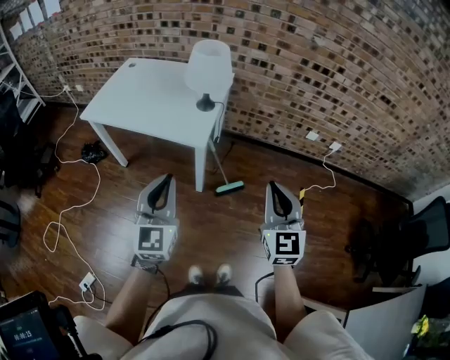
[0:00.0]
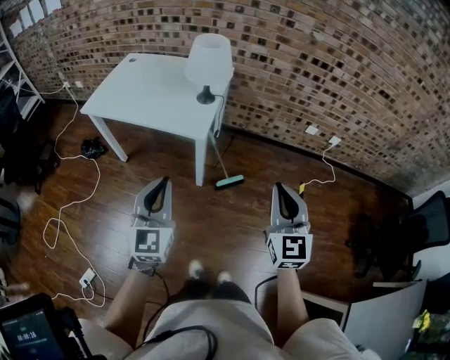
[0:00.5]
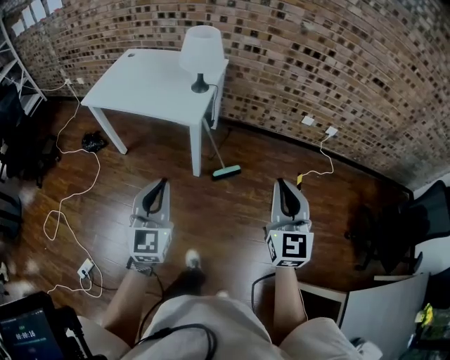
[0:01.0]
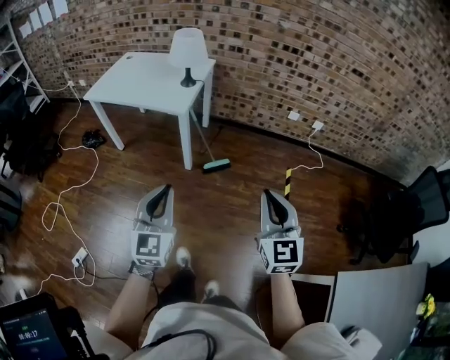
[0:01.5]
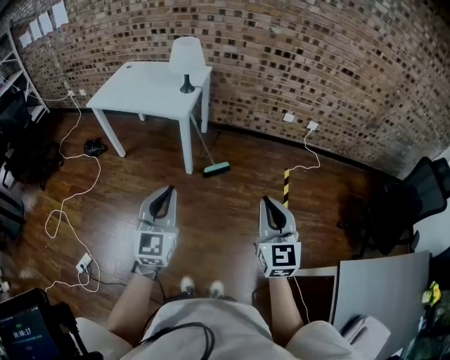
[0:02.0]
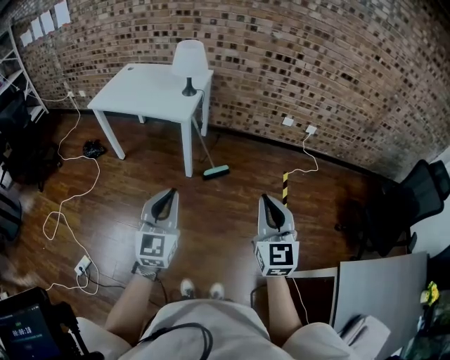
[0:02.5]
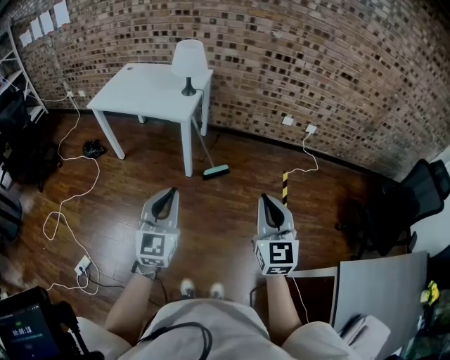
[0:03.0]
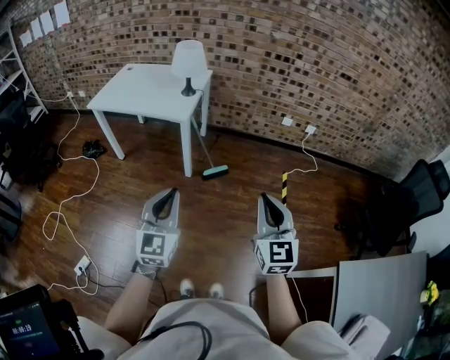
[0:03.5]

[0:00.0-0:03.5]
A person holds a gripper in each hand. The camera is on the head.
0:00.0 to 0:02.0: Both grippers travel together backward, approximately 30 cm.
0:02.0 to 0:03.5: The grippers move only a little.

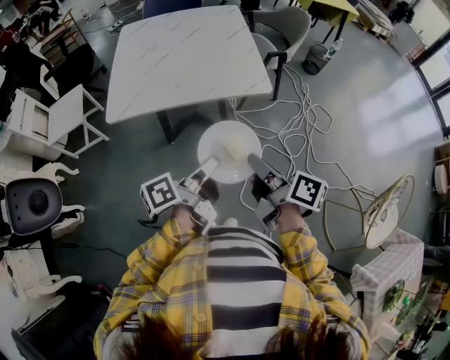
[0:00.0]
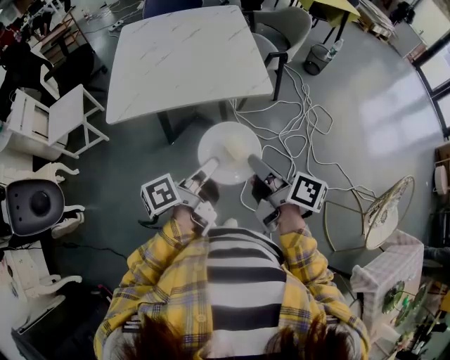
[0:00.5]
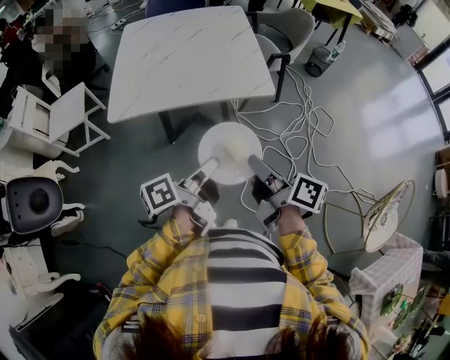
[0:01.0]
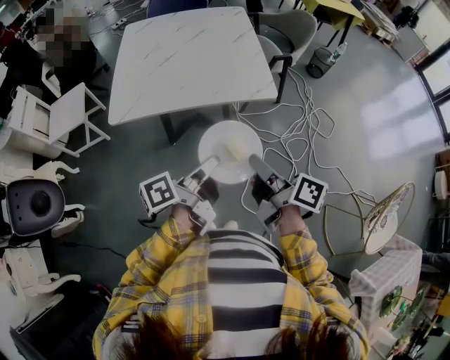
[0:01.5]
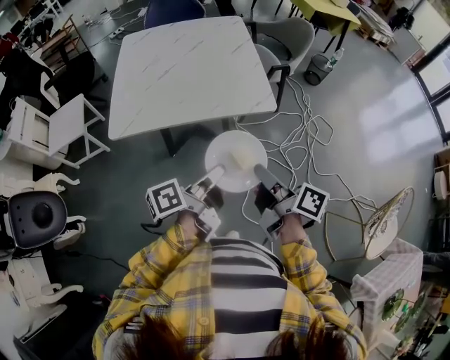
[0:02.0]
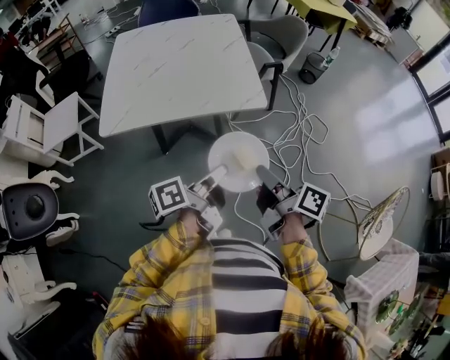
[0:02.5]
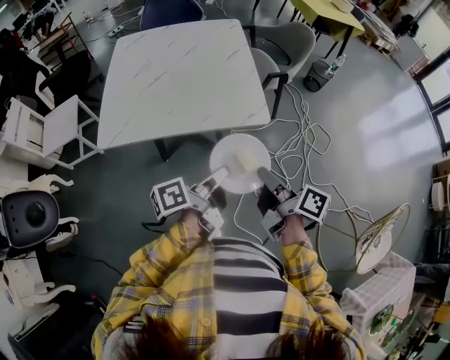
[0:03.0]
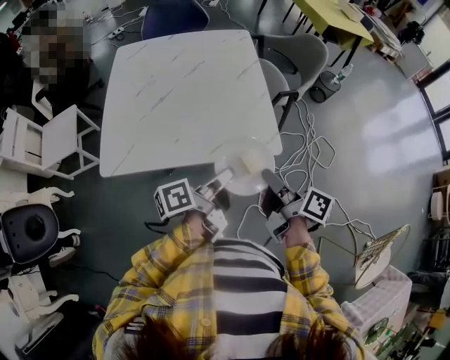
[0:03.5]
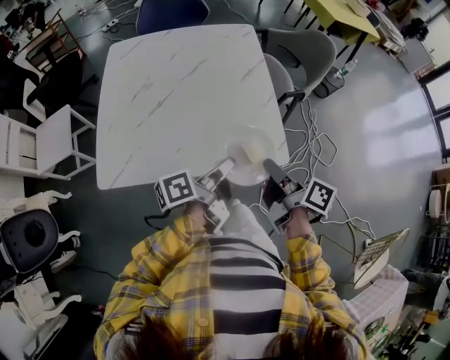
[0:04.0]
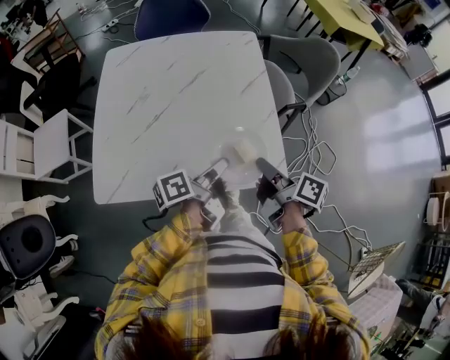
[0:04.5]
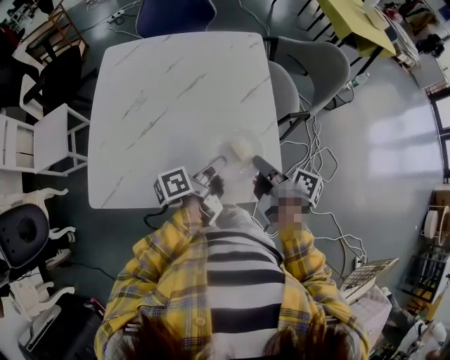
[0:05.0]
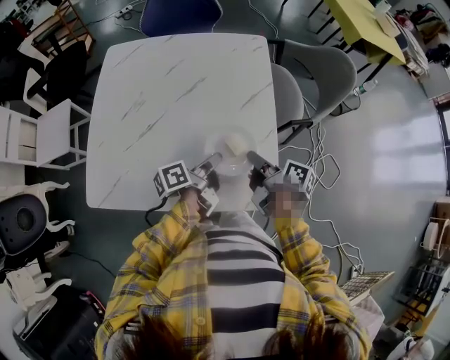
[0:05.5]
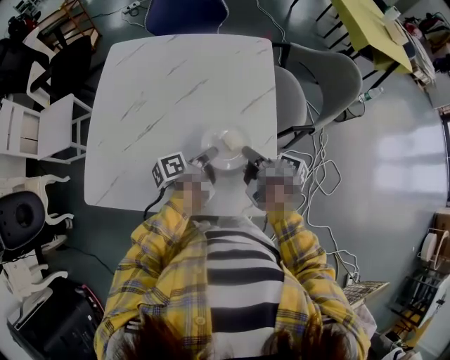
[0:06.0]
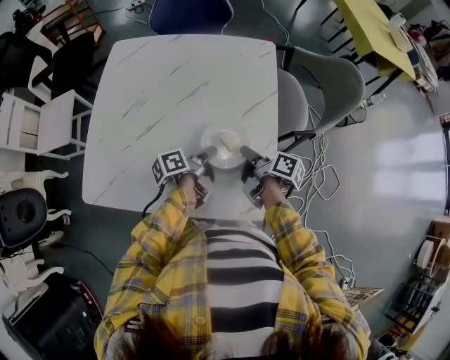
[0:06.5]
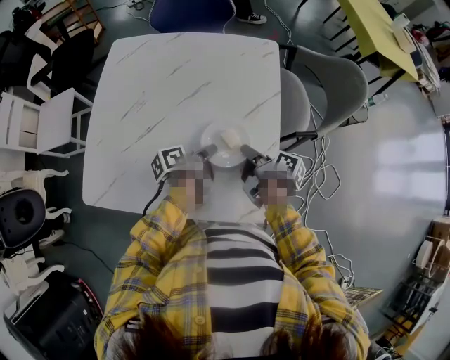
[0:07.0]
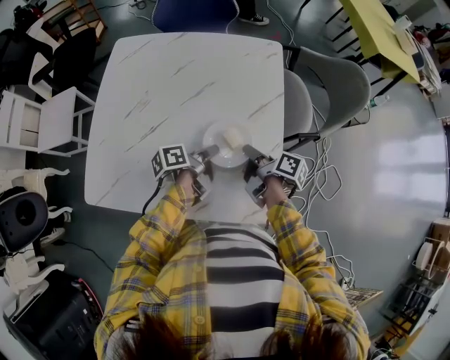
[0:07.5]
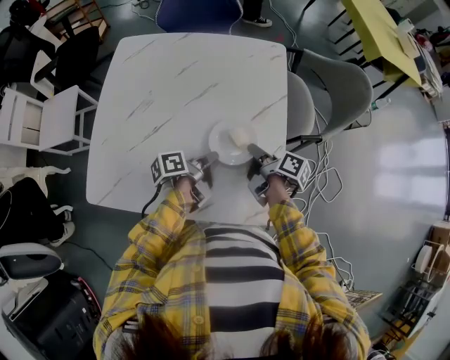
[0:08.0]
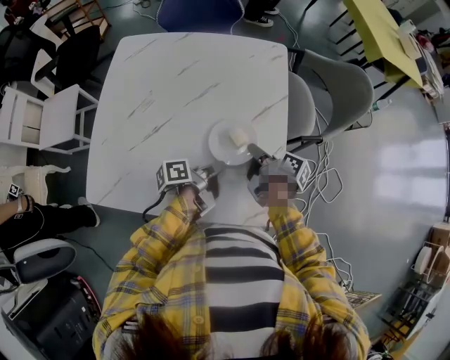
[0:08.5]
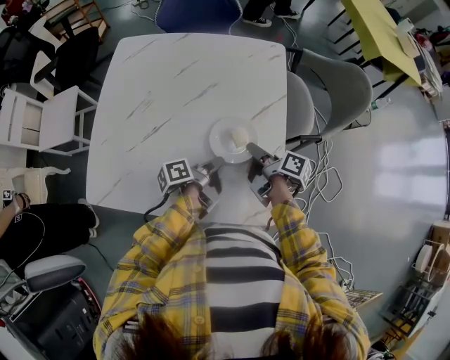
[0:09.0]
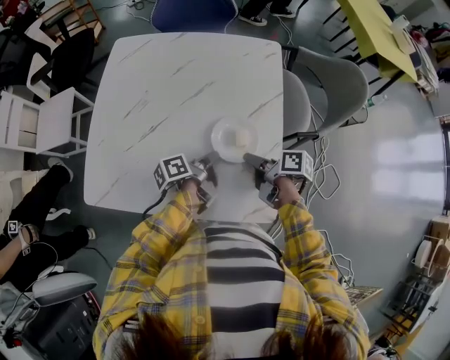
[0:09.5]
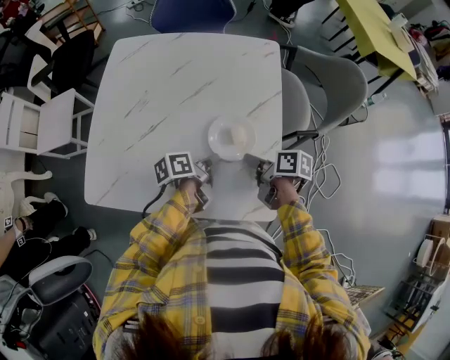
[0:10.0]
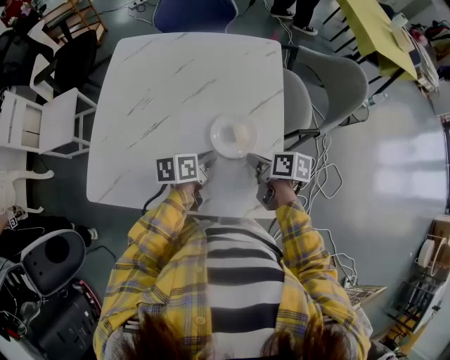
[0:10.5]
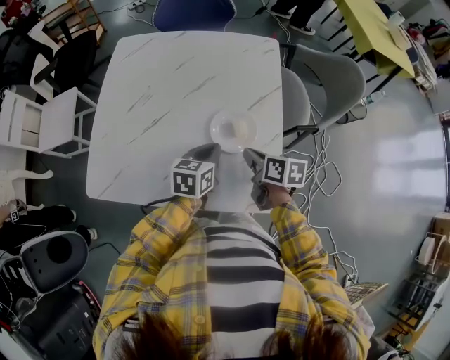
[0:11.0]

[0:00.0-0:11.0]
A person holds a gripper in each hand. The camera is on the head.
0:02.0 to 0:03.5: The right gripper changes place by about 15 cm.
0:03.5 to 0:05.5: The right gripper ends up about 25 cm from where it was.
0:05.5 to 0:07.5: The right gripper shifts by some 10 cm.
0:09.0 to 0:11.0: The right gripper ends up roughly 5 cm from where it was, and changes its angle by roughly 40 degrees.

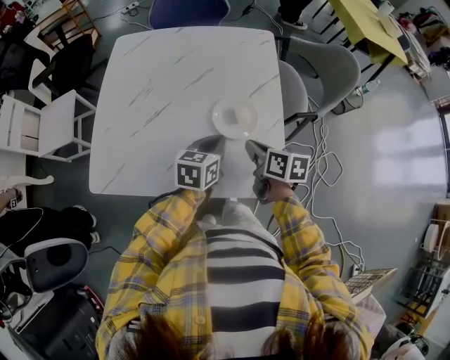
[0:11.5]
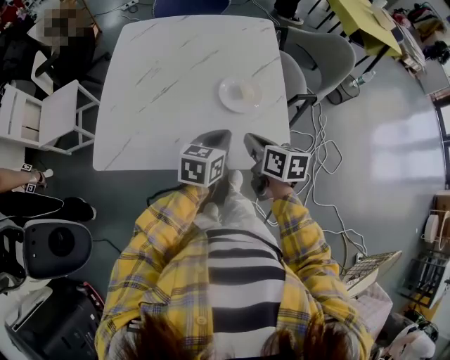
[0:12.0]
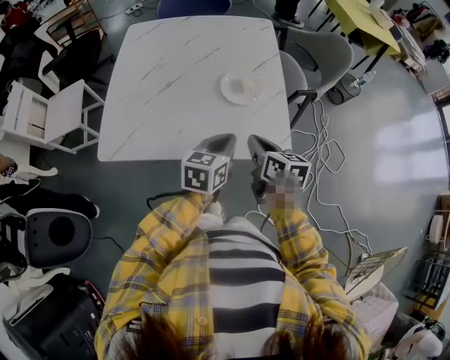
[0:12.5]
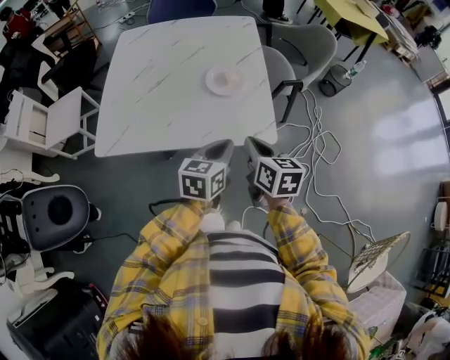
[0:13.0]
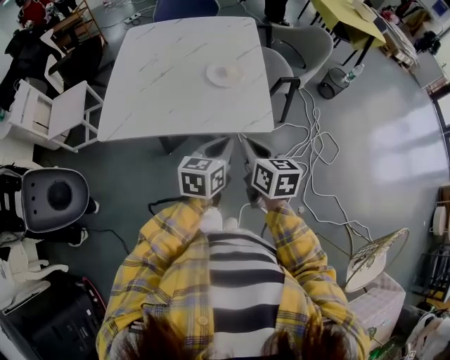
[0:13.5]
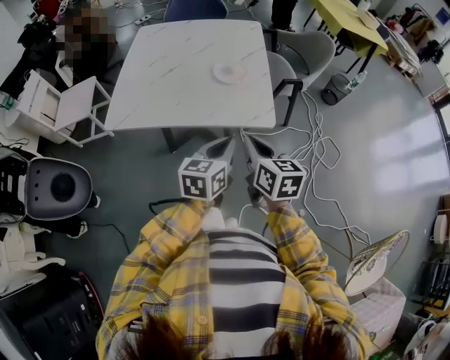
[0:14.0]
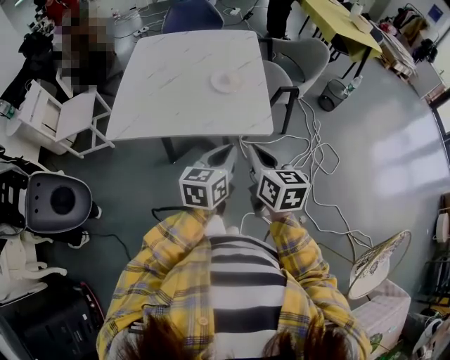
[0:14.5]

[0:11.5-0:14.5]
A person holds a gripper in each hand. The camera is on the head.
0:11.5 to 0:13.0: The right gripper ends up about 20 cm from where it was.
0:13.0 to 0:14.5: The right gripper moves some 10 cm.

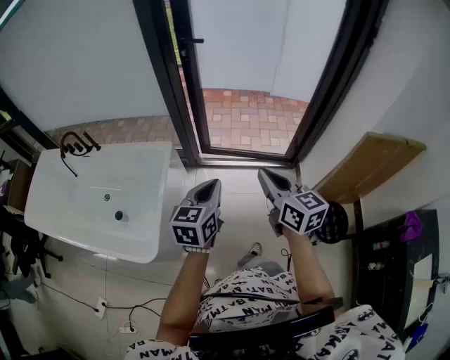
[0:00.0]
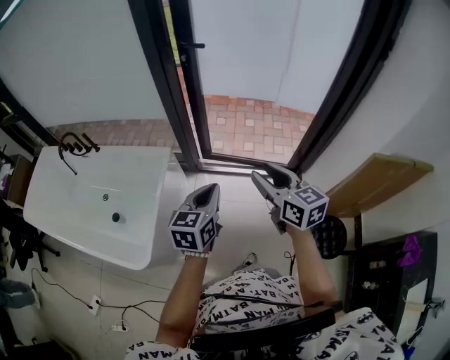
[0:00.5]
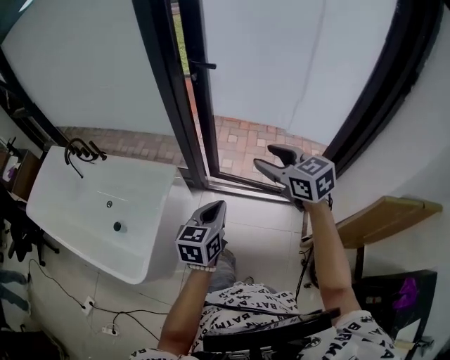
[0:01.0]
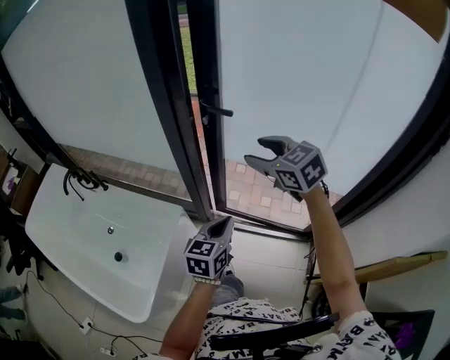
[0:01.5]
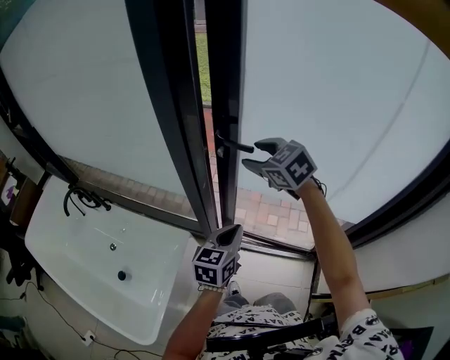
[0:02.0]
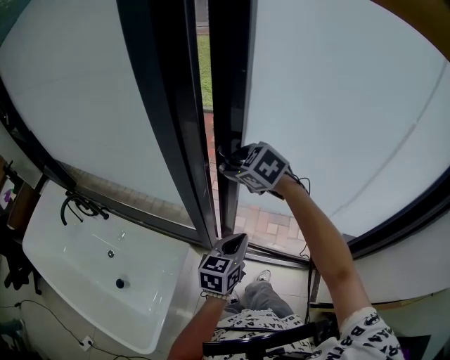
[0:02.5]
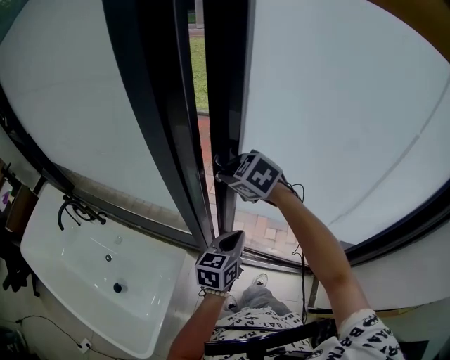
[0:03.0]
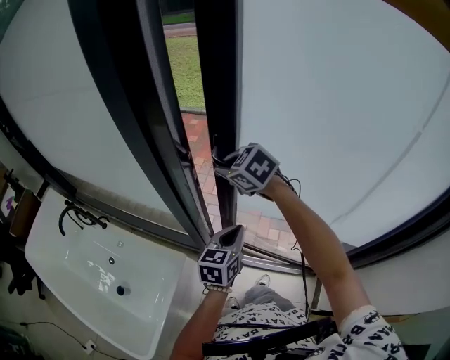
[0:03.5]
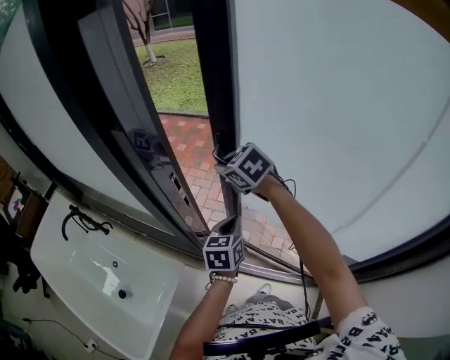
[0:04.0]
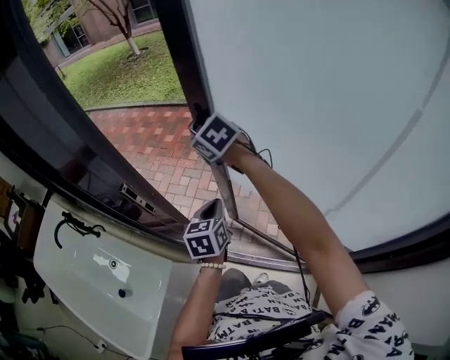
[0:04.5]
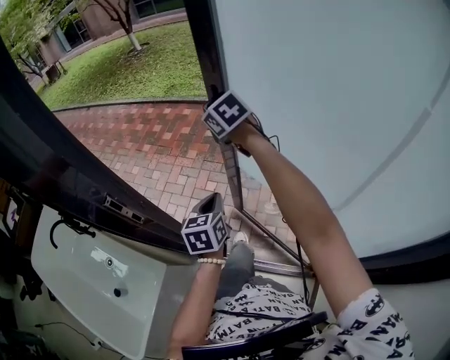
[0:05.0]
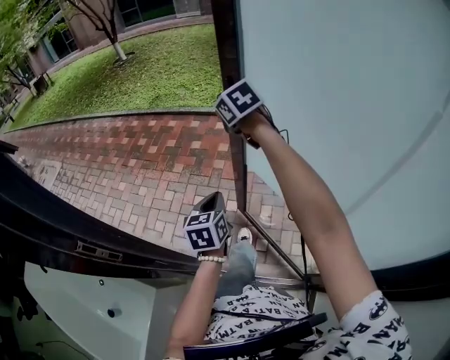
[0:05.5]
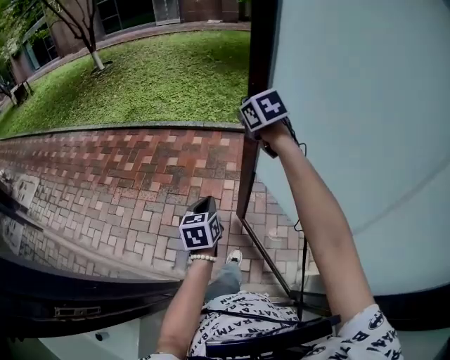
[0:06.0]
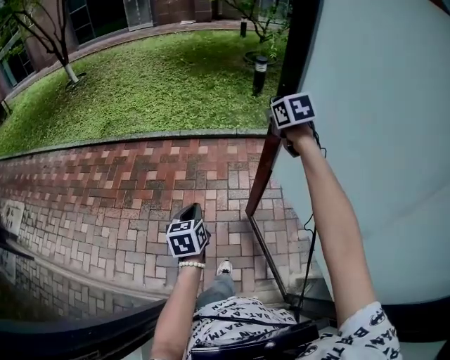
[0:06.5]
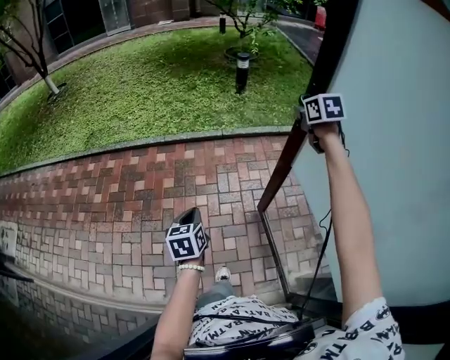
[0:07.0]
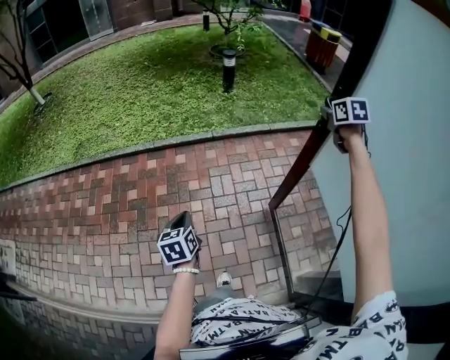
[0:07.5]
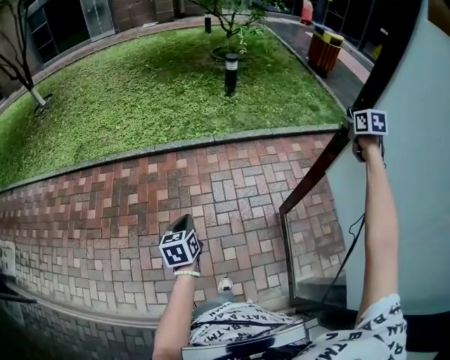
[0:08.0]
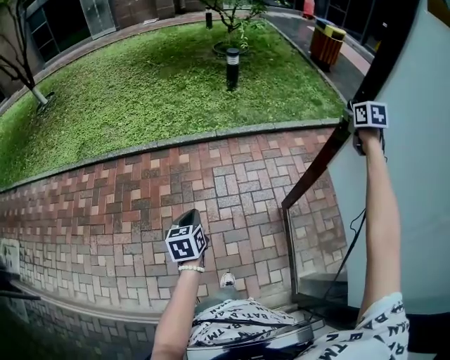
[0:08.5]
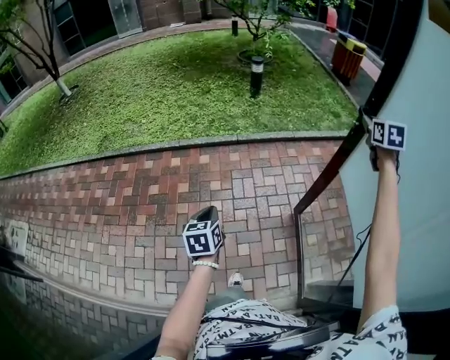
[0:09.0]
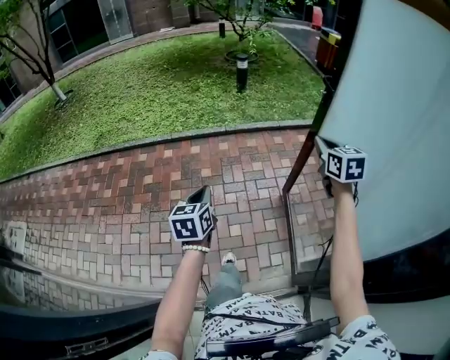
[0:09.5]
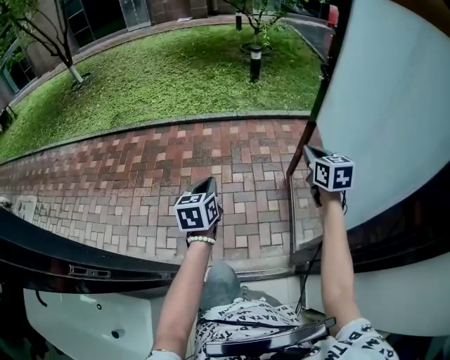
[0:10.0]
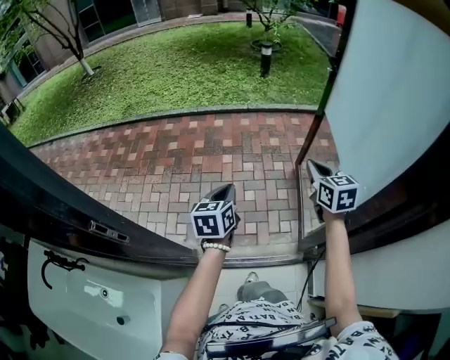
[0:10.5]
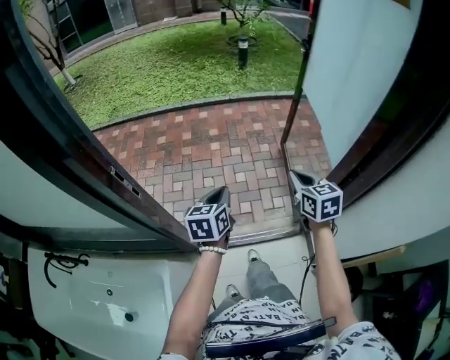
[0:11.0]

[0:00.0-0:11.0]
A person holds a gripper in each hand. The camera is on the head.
0:00.0 to 0:02.0: Both grippers are carried forward, approximately 50 cm. The right gripper swivels approximately 50 degrees, and opens up.
0:02.0 to 0:03.5: The left gripper is displaced forward and to the right by approximately 10 cm. The right gripper is displaced forward by roughly 10 cm, and closes up.
0:03.5 to 0:05.5: The left gripper is displaced forward and to the right by some 30 cm. The right gripper heads to the right and forward, covering approximately 40 cm, and changes its angle by some 30 degrees.
0:05.5 to 0:07.5: The left gripper changes place by roughly 35 cm; the right gripper changes place by some 70 cm, and rotates roughly 50 degrees.
0:07.5 to 0:09.0: The right gripper travels upward, to the right and backward by some 10 cm.
0:09.0 to 0:11.0: Both grippers are carried backward, approximately 60 cm. The right gripper turns by roughly 30 degrees, and closes up.
